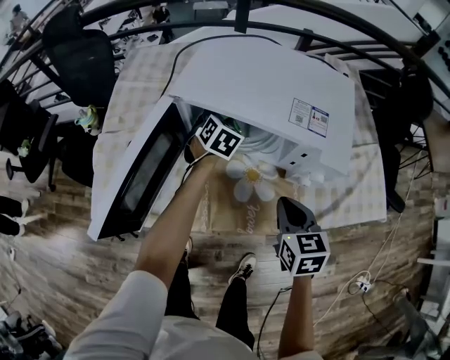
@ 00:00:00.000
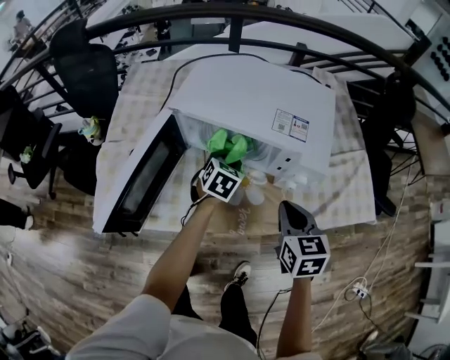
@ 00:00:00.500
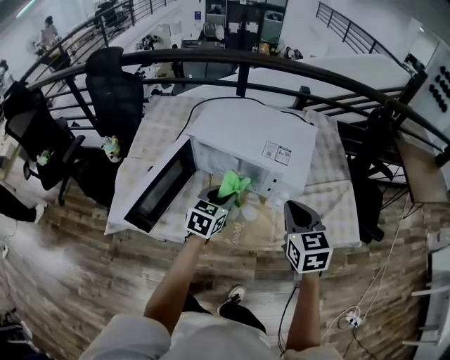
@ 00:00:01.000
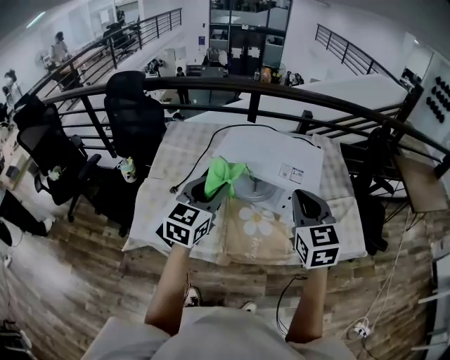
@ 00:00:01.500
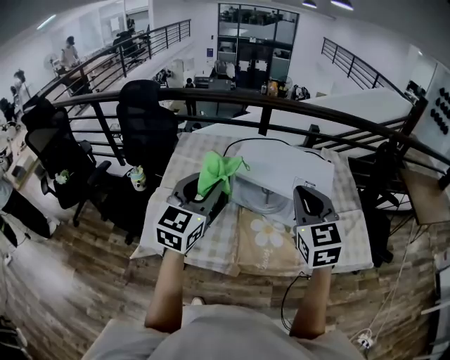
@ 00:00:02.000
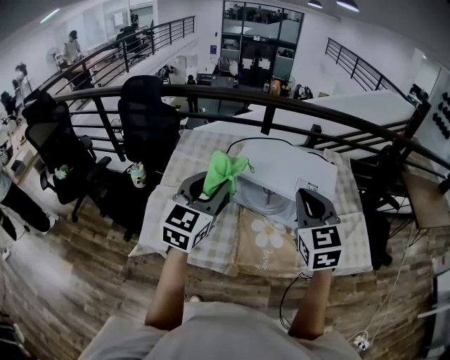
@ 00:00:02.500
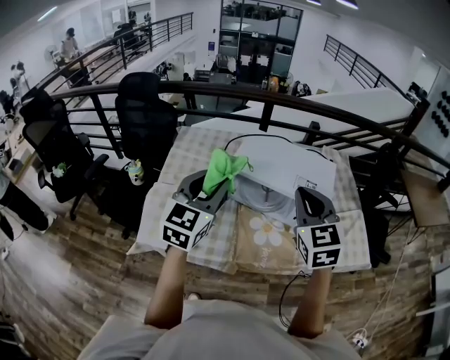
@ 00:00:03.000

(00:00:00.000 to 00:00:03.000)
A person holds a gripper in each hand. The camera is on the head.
00:00:00.000 - 00:00:01.500: The right gripper heads upward, covering about 30 cm, and rotates roughly 30 degrees, while the left gripper travels upward and backward by approximately 40 cm, and tips its fingers upward by approximately 30 degrees.
00:00:01.500 - 00:00:03.000: The left gripper changes place by some 5 cm. Meanwhile the right gripper shifts by approximately 5 cm.

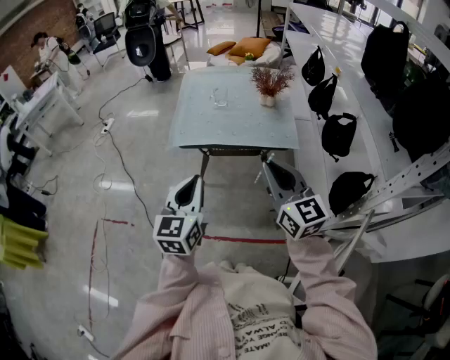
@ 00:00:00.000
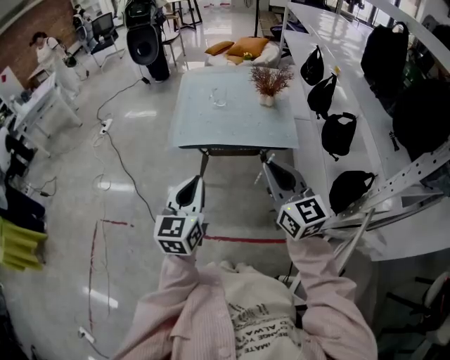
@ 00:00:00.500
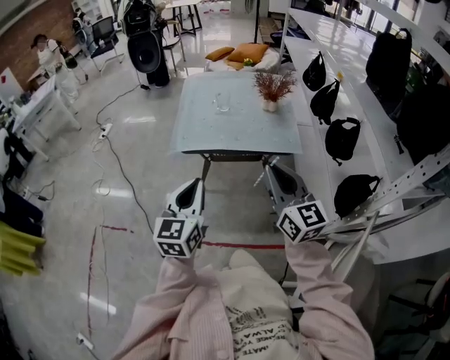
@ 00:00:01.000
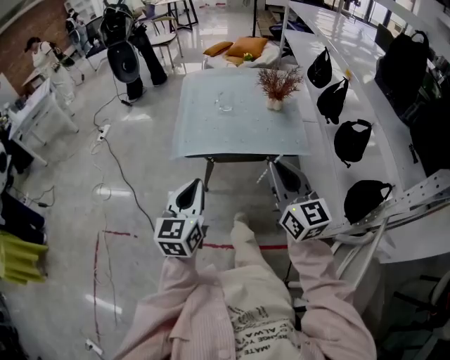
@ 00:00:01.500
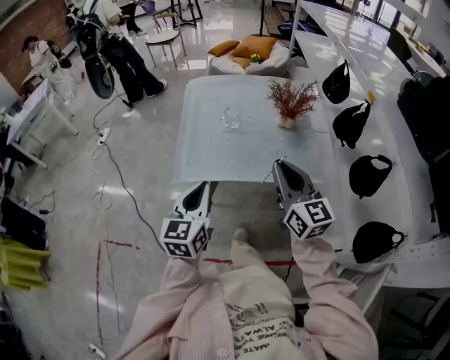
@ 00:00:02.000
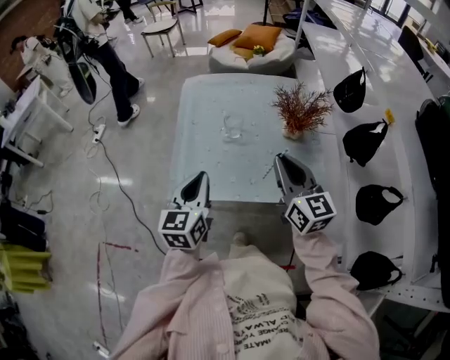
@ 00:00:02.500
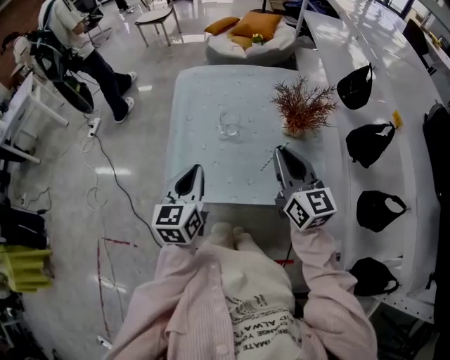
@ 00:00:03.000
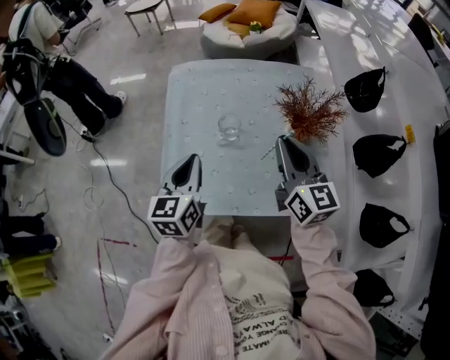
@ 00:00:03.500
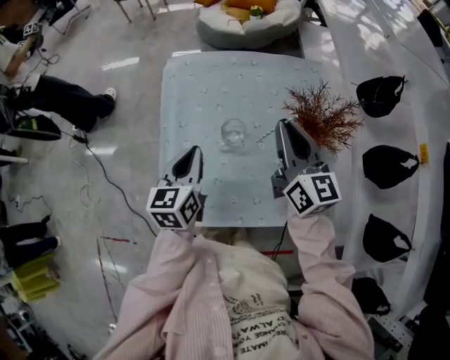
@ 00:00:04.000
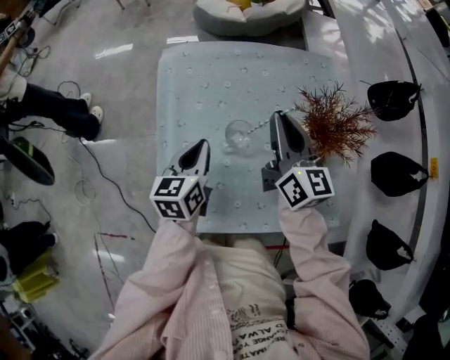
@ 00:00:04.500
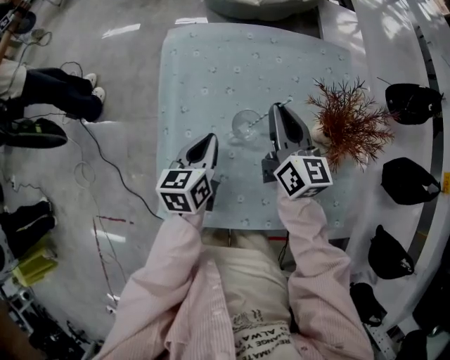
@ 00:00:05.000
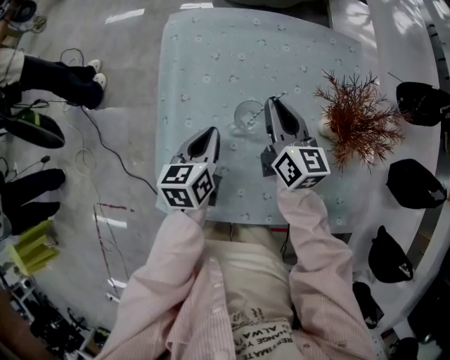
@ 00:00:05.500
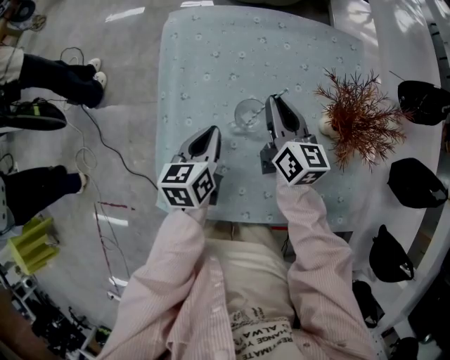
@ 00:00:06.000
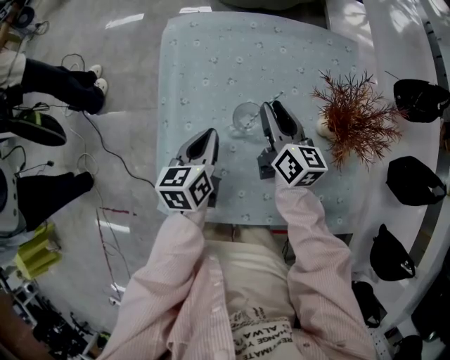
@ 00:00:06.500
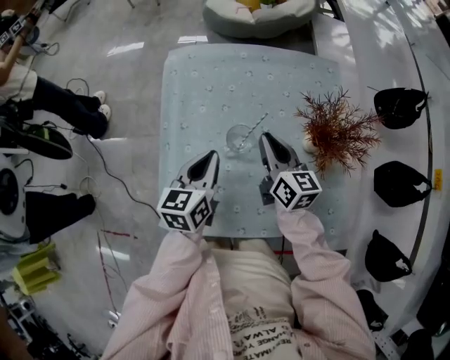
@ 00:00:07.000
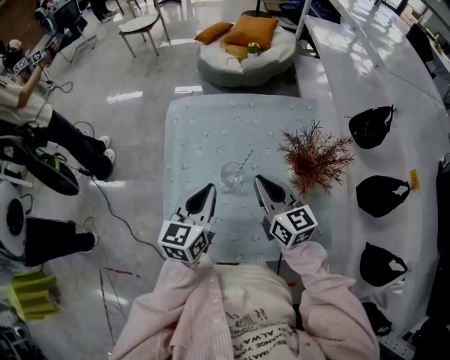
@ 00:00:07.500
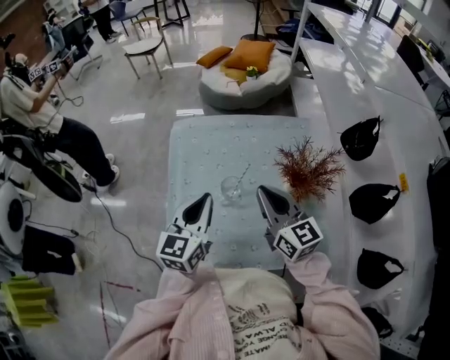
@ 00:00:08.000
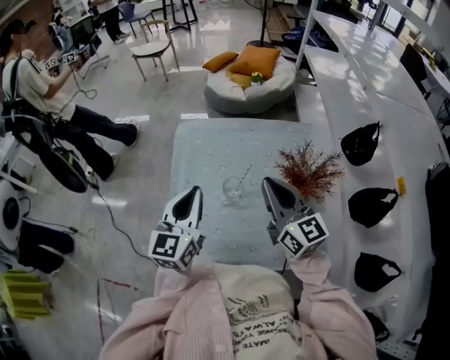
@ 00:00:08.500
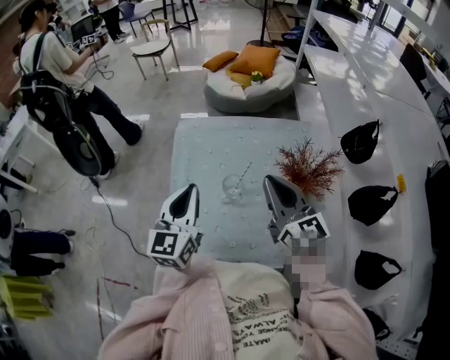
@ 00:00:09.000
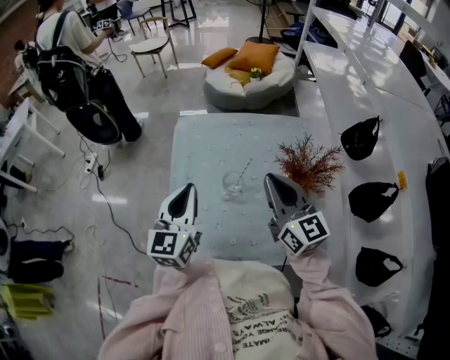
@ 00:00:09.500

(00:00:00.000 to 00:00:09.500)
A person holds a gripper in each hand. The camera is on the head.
00:00:00.000 - 00:00:02.000: The two grippers go some 20 cm forward.
00:00:02.000 - 00:00:04.000: The grippers both shift forward by about 35 cm.
00:00:04.000 - 00:00:05.500: The left gripper goes some 10 cm downward; the right gripper shifts roughly 15 cm downward and forward.
00:00:05.500 - 00:00:07.500: The left gripper moves upward, approximately 15 cm, and rotates approximately 20 degrees; the right gripper travels upward and backward by roughly 10 cm, and opens, then closes again.
00:00:07.500 - 00:00:09.500: The right gripper goes roughly 10 cm upward; the left gripper goes some 10 cm upward and to the left.

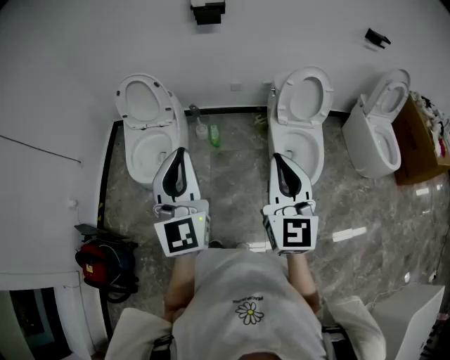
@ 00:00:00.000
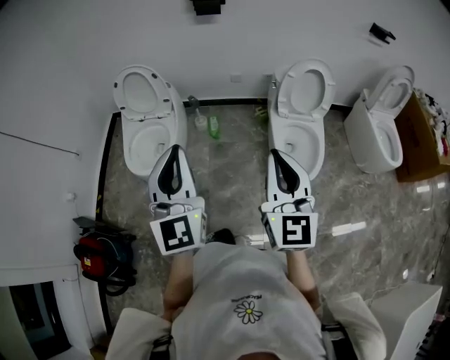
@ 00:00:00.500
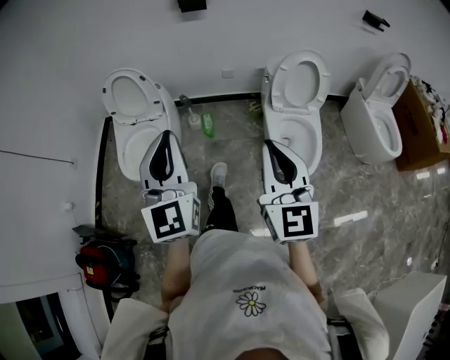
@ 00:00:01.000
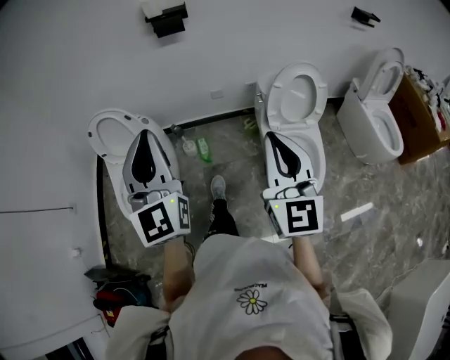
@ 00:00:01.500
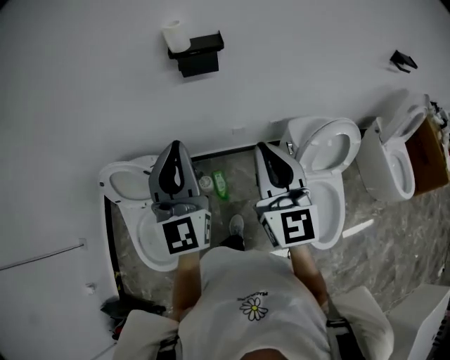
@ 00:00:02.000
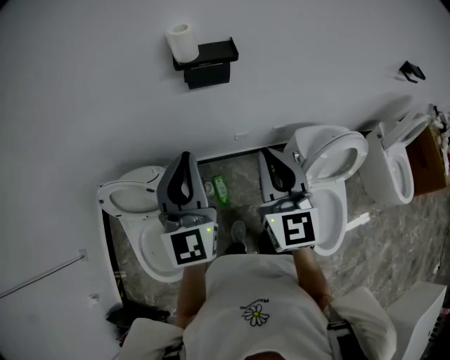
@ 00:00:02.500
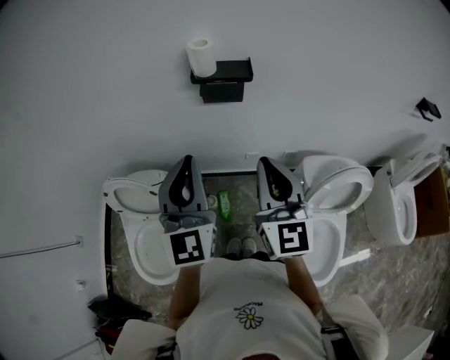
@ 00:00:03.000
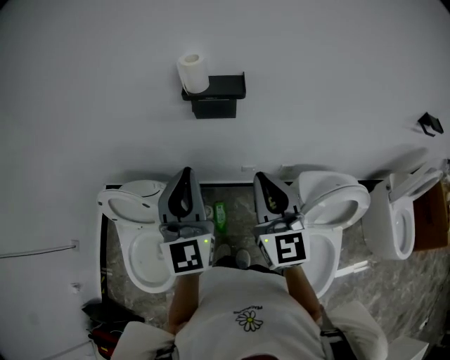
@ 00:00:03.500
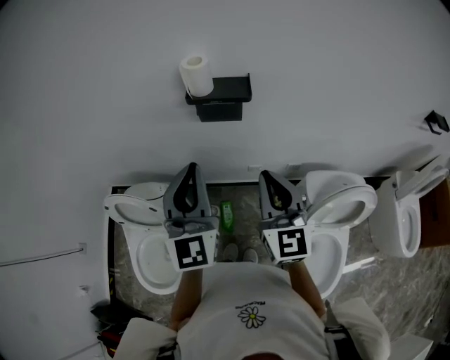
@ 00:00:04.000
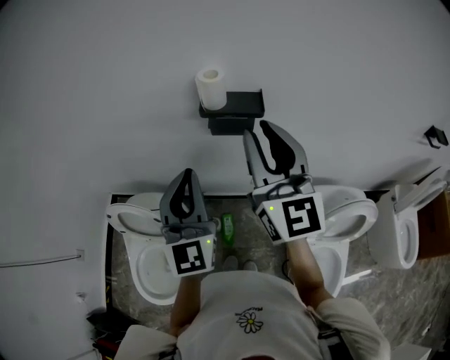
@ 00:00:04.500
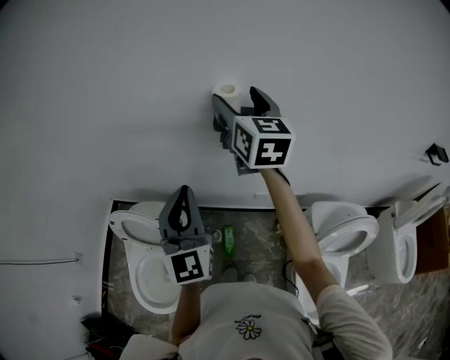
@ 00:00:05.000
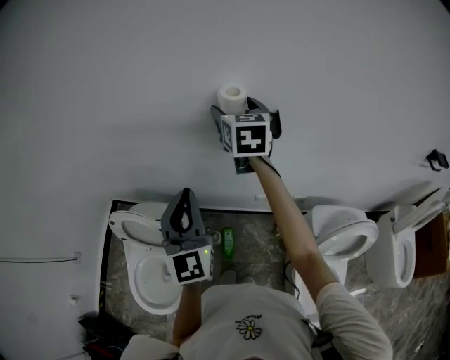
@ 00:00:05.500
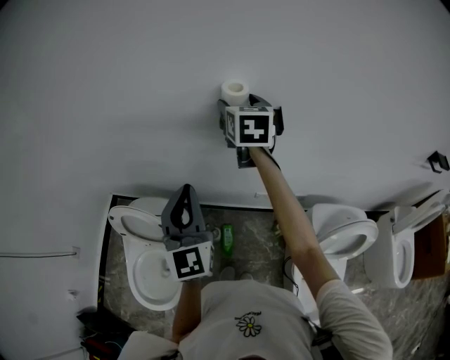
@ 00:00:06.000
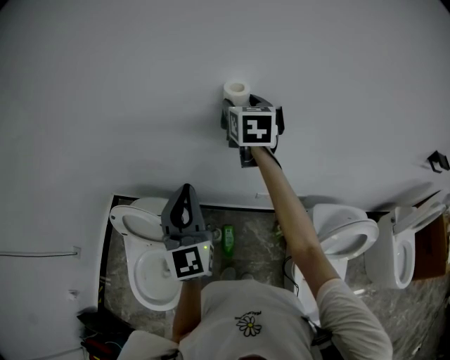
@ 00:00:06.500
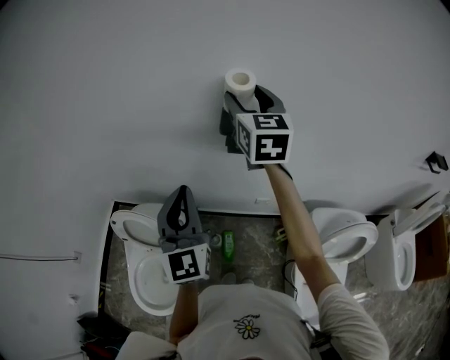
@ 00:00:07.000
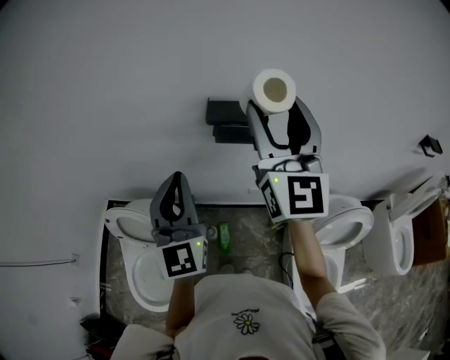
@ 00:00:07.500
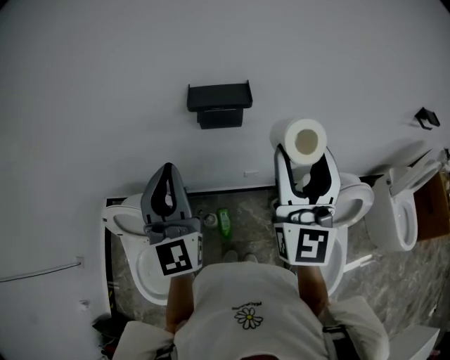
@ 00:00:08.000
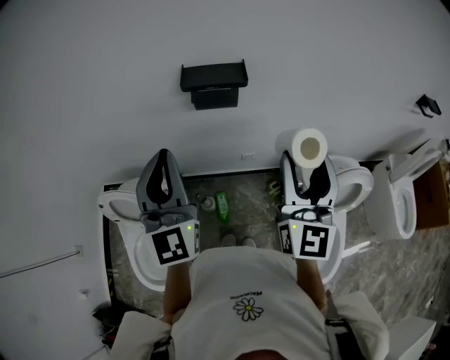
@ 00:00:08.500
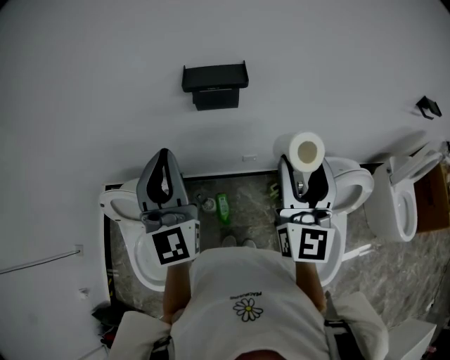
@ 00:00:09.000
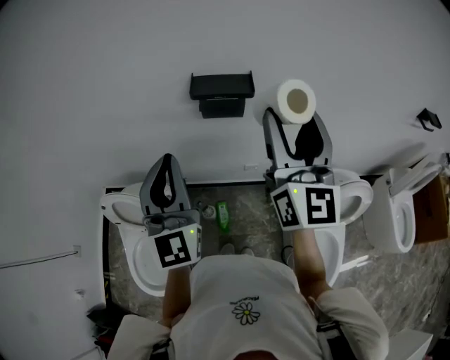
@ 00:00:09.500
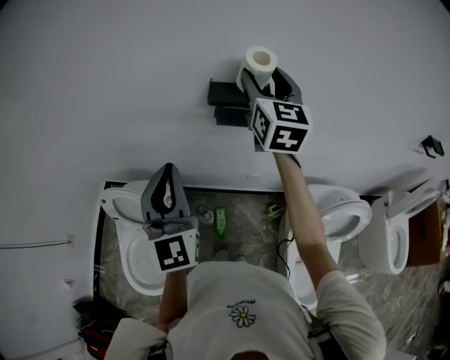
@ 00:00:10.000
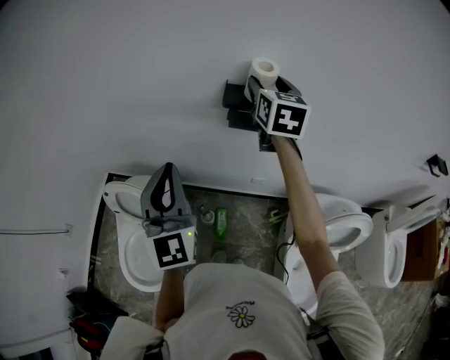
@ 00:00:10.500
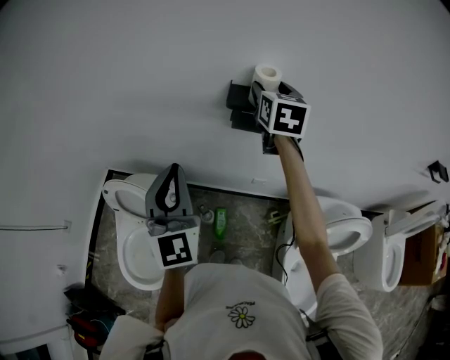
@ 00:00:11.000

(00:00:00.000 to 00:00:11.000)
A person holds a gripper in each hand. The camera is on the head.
00:00:00.000 - 00:00:02.000: The two grippers travel together, forward, about 50 cm.
00:00:02.000 - 00:00:03.500: Both grippers travel together forward, roughly 15 cm.
00:00:03.500 - 00:00:05.500: The left gripper moves to the left and forward, roughly 10 cm. Meanwhile the right gripper travels forward by some 30 cm, and opens its fingers.
00:00:05.500 - 00:00:07.500: The right gripper is displaced backward and upward by approximately 25 cm, and tips its fingers upward by approximately 40 degrees.
00:00:07.500 - 00:00:09.000: The right gripper is displaced downward, backward and to the right by roughly 20 cm.
00:00:09.000 - 00:00:11.000: The left gripper goes roughly 5 cm to the left; the right gripper shifts roughly 30 cm forward, and turns by some 30 degrees.

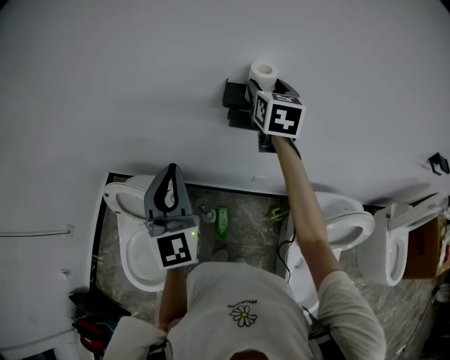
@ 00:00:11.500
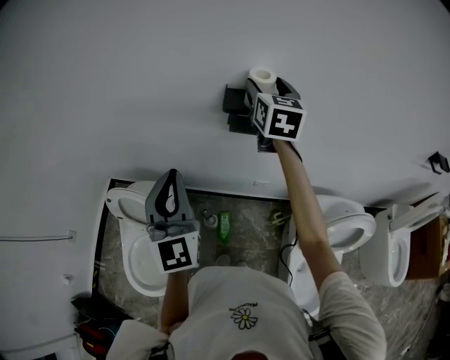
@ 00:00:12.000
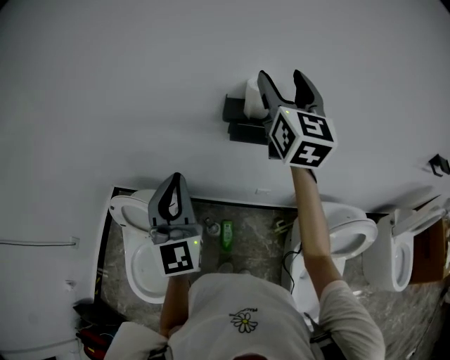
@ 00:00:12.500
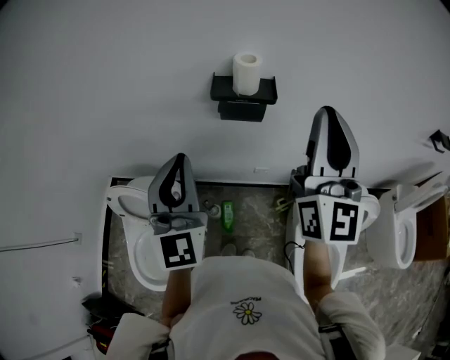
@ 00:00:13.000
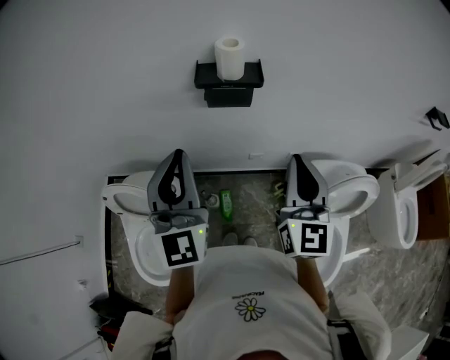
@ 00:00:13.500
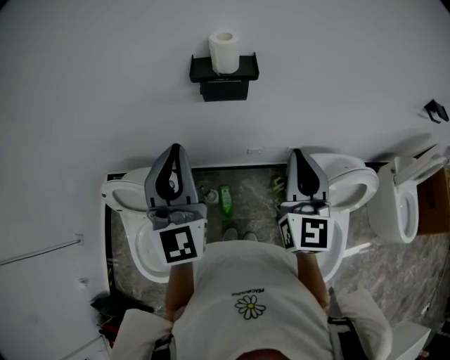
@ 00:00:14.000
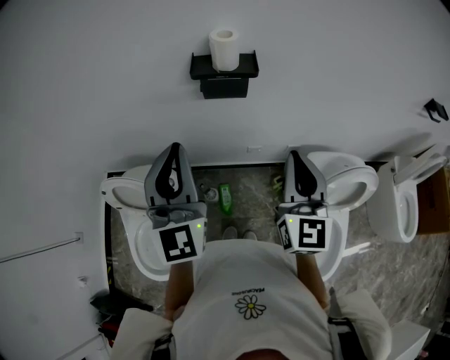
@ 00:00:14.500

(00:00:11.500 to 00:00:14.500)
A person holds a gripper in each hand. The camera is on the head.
00:00:11.500 - 00:00:13.000: The left gripper changes place by approximately 5 cm, while the right gripper shifts approximately 25 cm backward and upward, angles its fingers upward, by approximately 40 degrees, and closes up.
00:00:13.000 - 00:00:14.500: The right gripper moves downward, approximately 15 cm, and turns by some 20 degrees.
